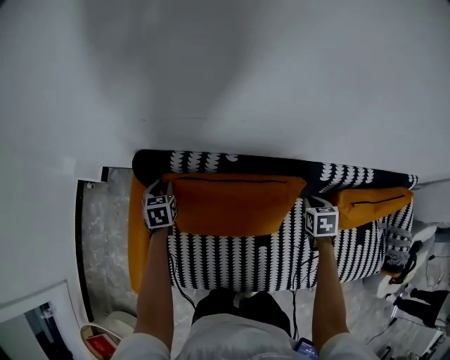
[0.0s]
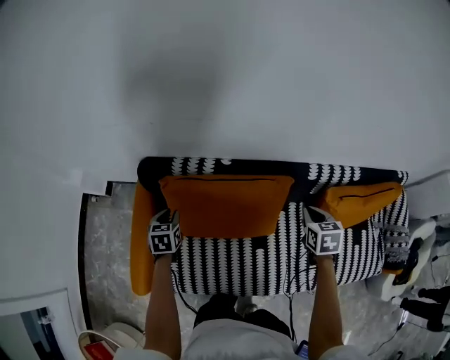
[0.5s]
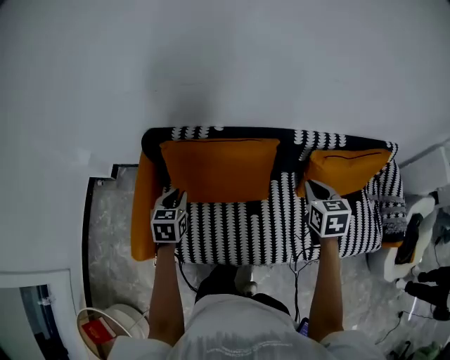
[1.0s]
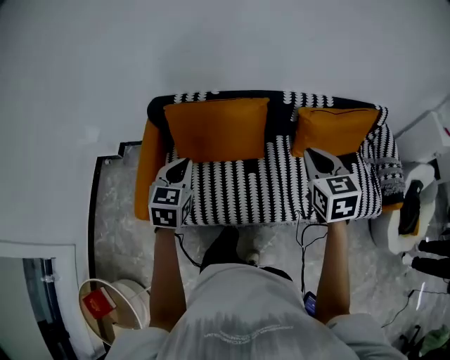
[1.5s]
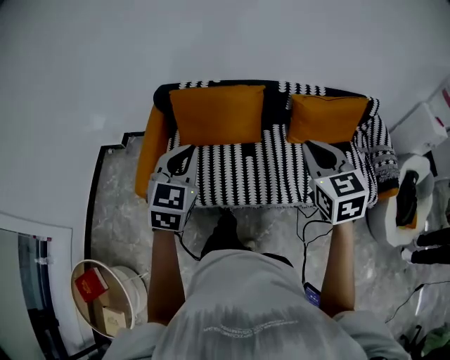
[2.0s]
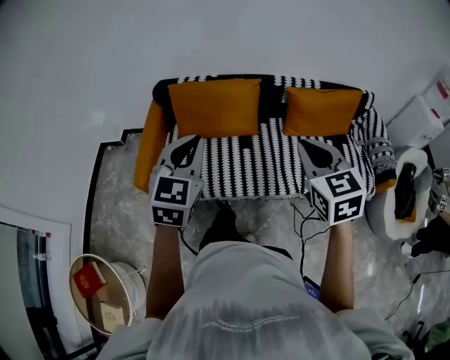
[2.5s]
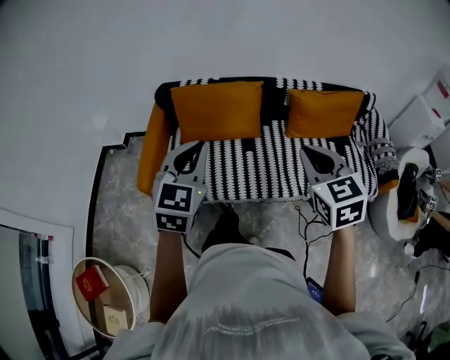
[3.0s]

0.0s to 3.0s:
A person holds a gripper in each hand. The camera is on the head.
0.0s to 1.5s: The right gripper is displaced backward and upward by roughly 50 cm, and tilts its fingers some 30 degrees upward, while the left gripper travels backward, upward and to the right by about 50 cm, turns by some 30 degrees, and closes.
1.5s to 3.0s: The right gripper goes approximately 20 cm backward; the left gripper travels backward and upward by roughly 20 cm.

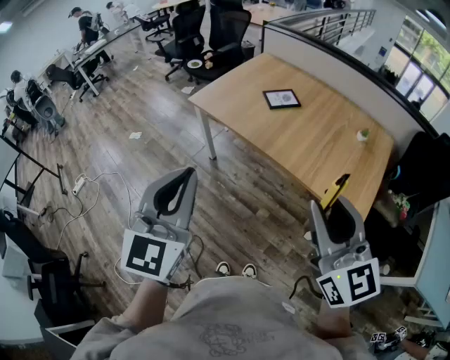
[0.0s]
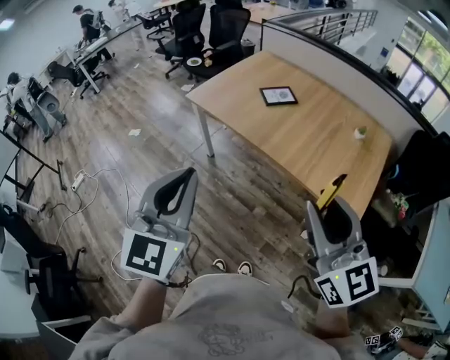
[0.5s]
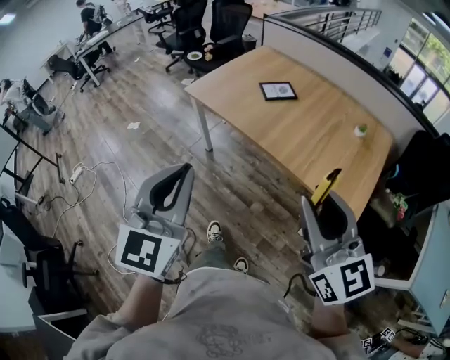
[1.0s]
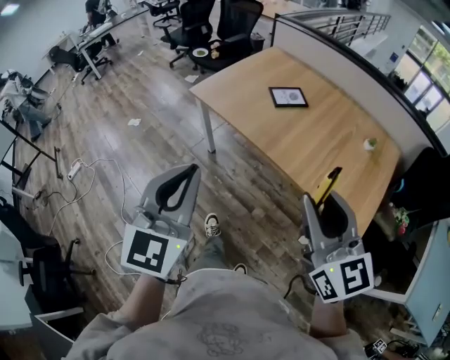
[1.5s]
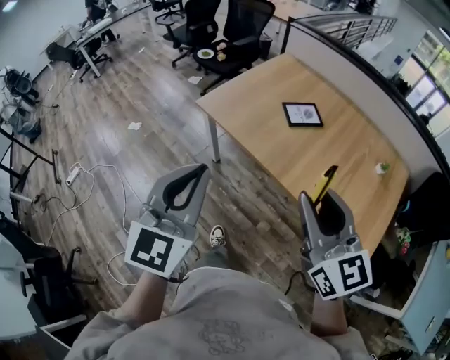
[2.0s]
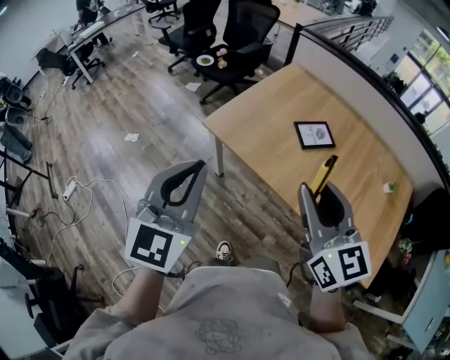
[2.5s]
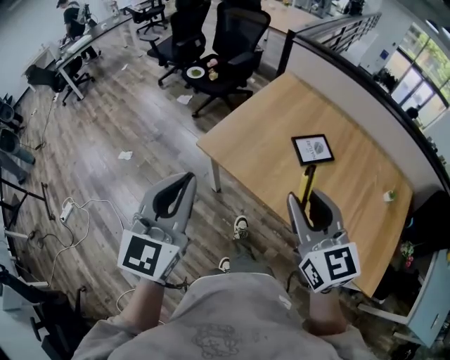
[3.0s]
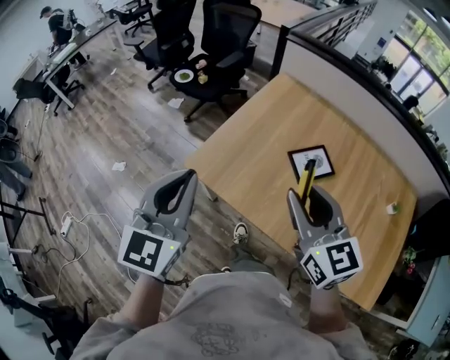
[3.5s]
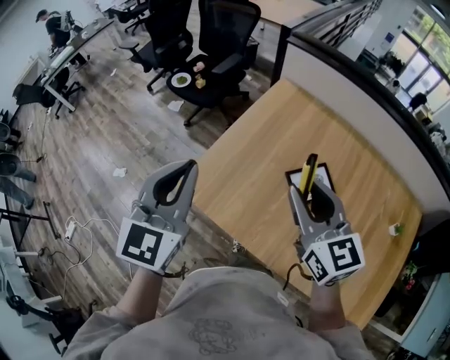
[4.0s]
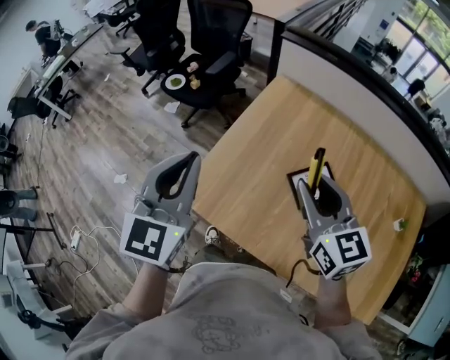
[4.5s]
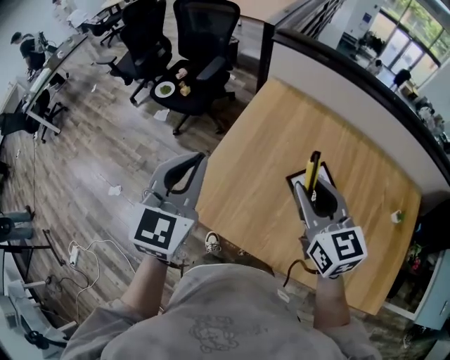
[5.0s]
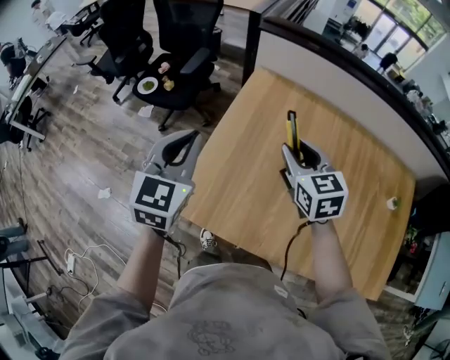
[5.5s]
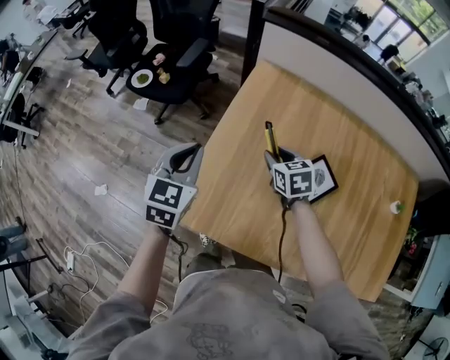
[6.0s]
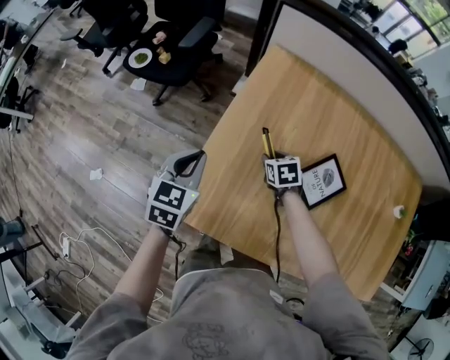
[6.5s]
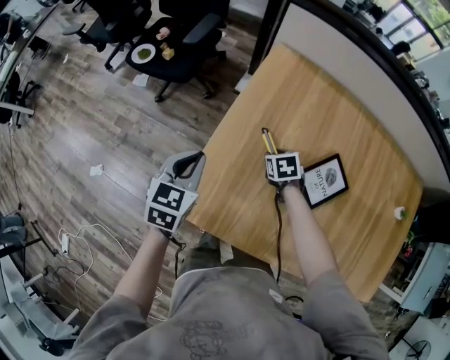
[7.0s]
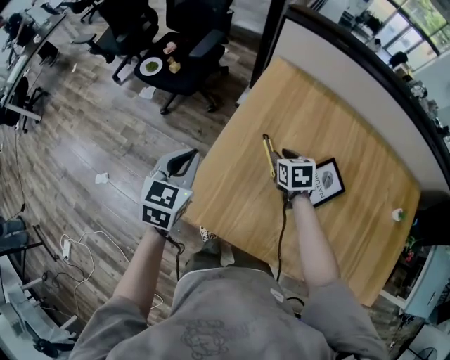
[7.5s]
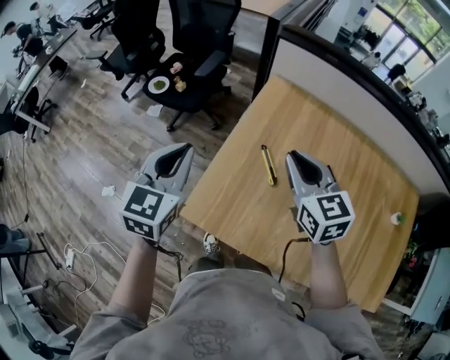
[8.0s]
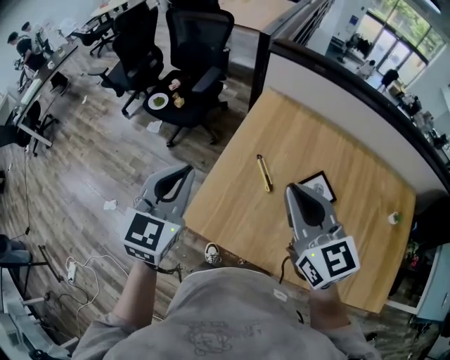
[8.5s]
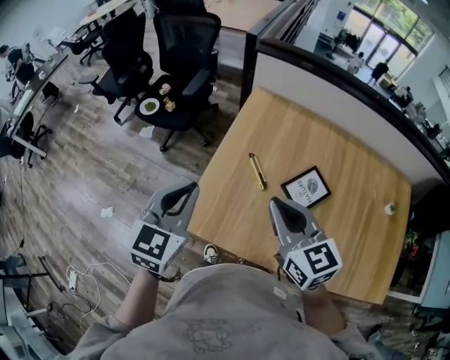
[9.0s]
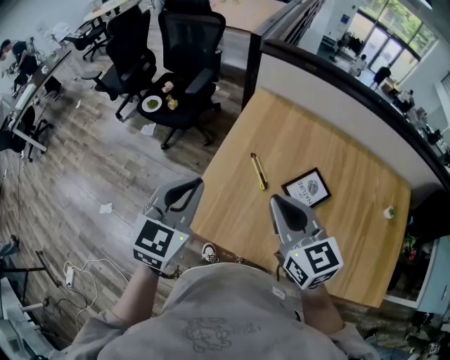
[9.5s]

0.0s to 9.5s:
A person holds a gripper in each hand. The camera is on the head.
0.0s to 2.0s: Both grippers travel together forward, some 20 cm.
2.0s to 4.0s: The pair of grippers is taken forward, approximately 50 cm.
4.0s to 5.5s: The right gripper goes some 20 cm forward and downward, and turns by approximately 20 degrees, while the left gripper shifts roughly 15 cm forward.
5.5s to 7.5s: The right gripper goes some 20 cm downward, and swivels about 30 degrees. Meanwhile the left gripper moves downward and to the left, about 15 cm.
7.5s to 9.5s: The left gripper travels upward and backward by some 20 cm; the right gripper is displaced upward and backward by about 35 cm, angles its fingers upward, by approximately 40 degrees, and closes.

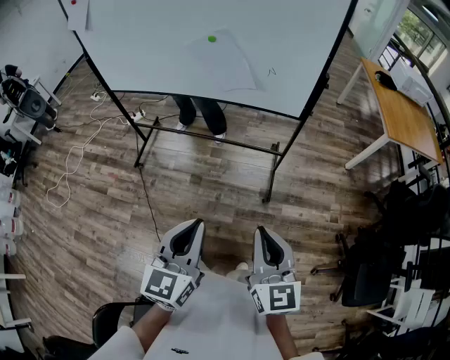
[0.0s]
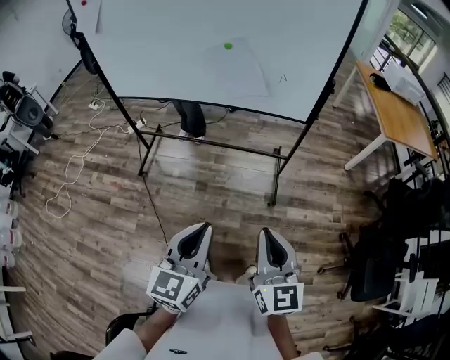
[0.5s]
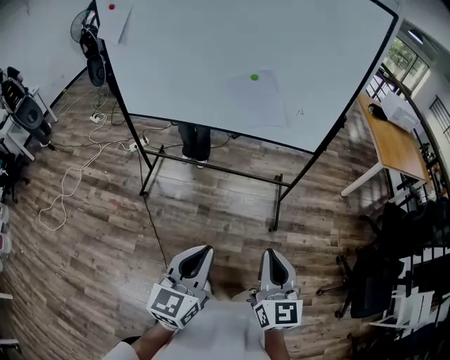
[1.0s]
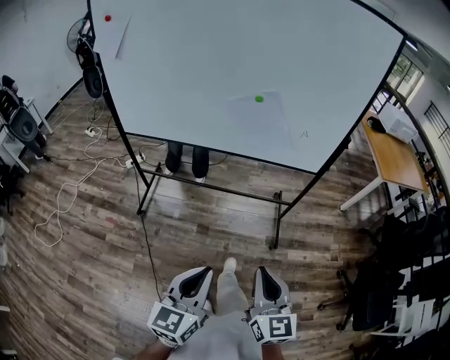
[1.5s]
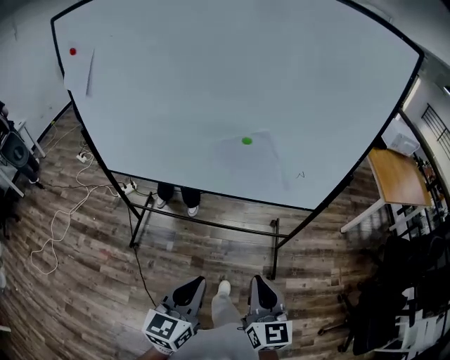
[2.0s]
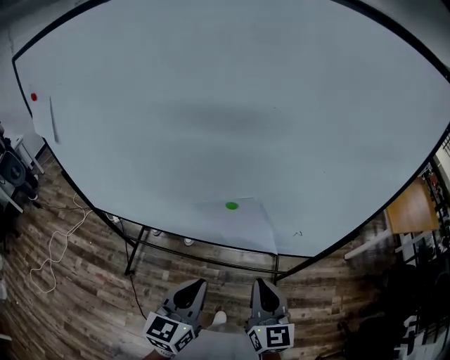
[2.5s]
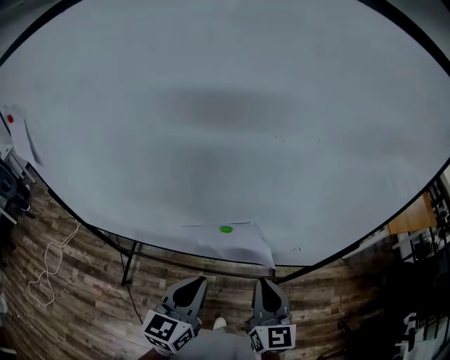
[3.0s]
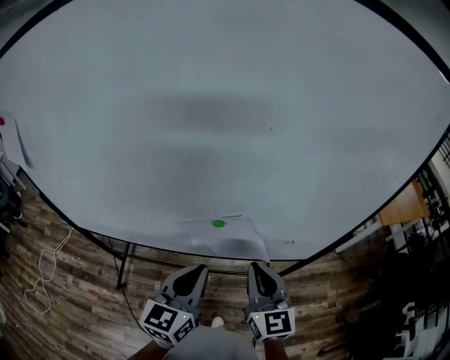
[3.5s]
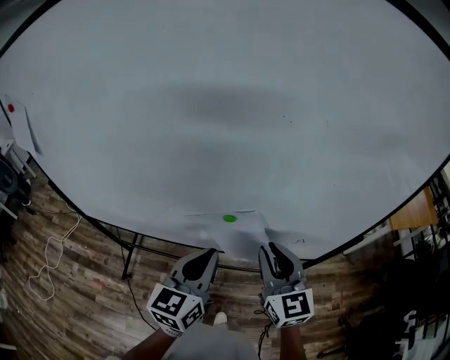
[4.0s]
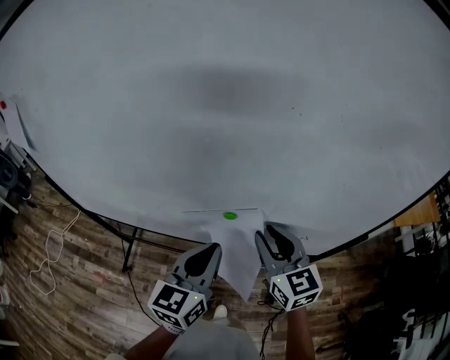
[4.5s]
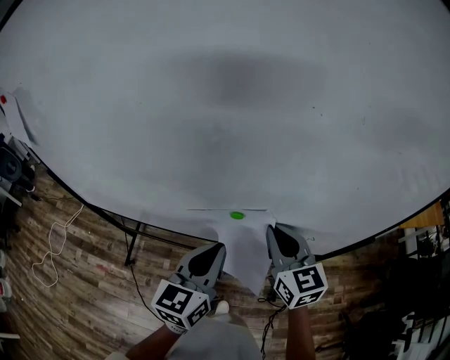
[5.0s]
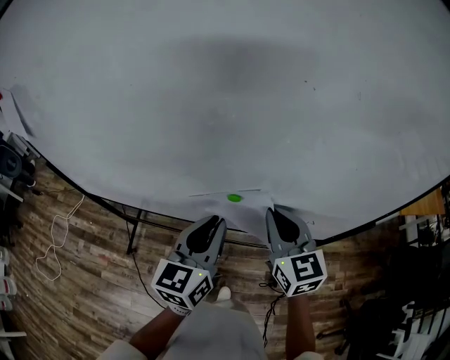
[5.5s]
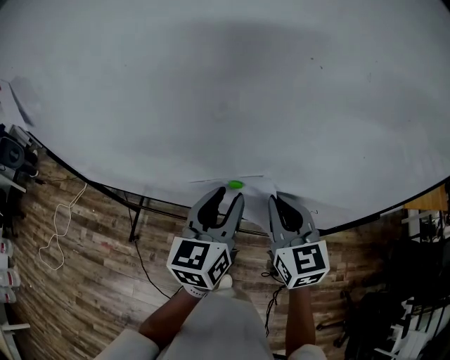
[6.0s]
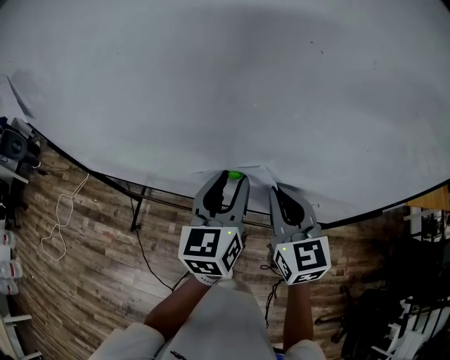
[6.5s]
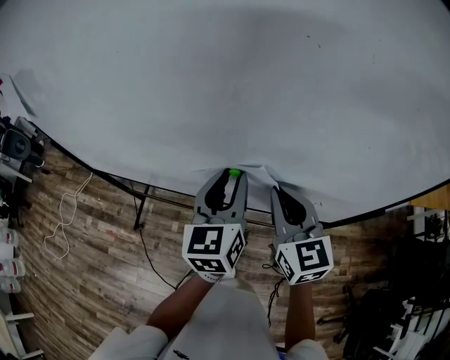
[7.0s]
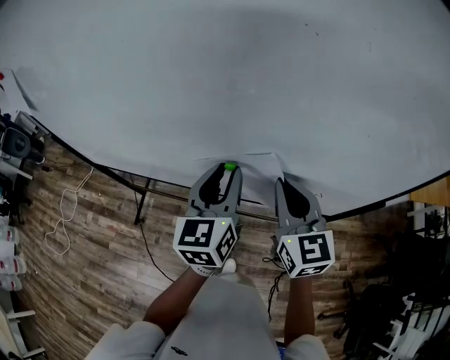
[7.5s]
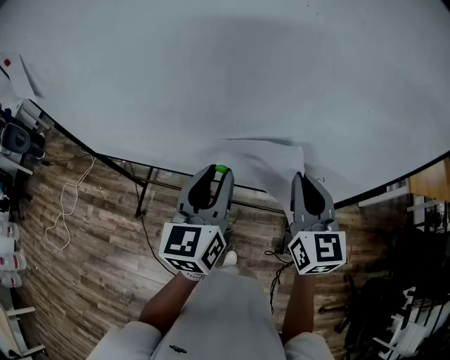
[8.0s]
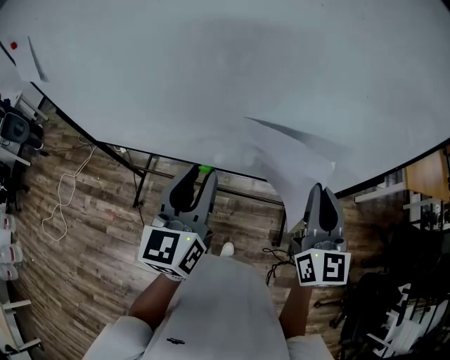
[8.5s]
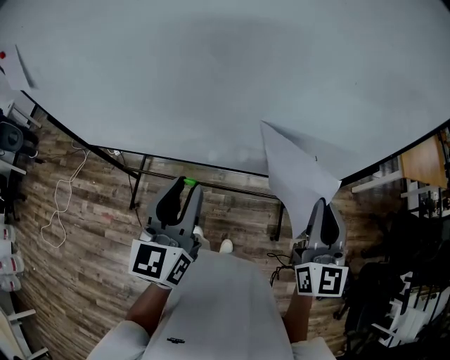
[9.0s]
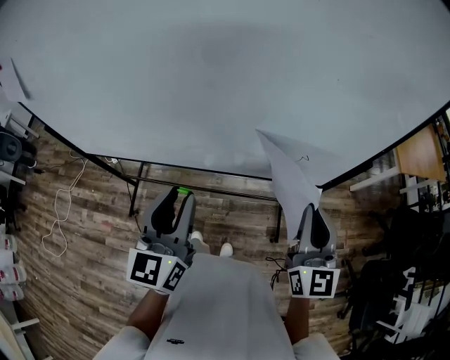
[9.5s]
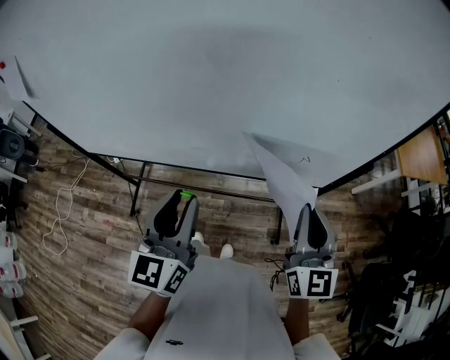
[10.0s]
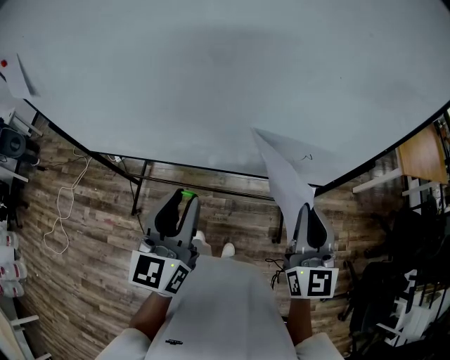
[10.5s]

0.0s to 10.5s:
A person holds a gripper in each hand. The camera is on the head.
0.0s to 2.0s: The two grippers go about 30 cm forward and to the left.
2.0s to 4.0s: The grippers both shift forward by approximately 35 cm.
4.0s to 6.5s: The left gripper heads forward, covering some 5 cm, and opens up.
6.5s to 8.5s: The right gripper travels backward and to the right by roughly 15 cm, and turns by about 20 degrees. The left gripper moves backward and to the left, some 15 cm.
8.5s to 10.5s: Both grippers travel together backward, approximately 5 cm.

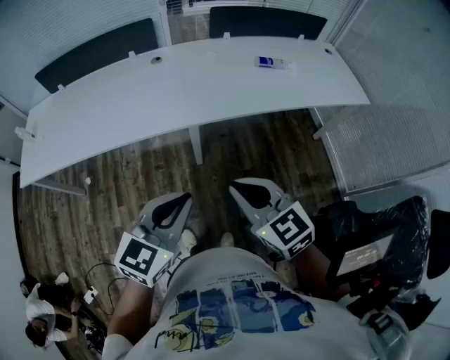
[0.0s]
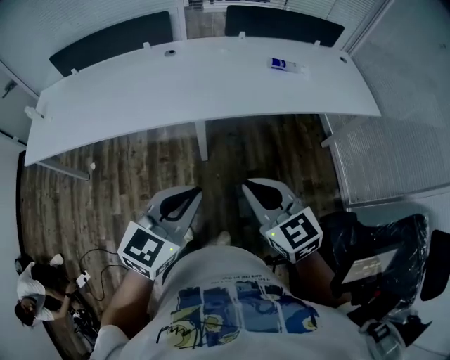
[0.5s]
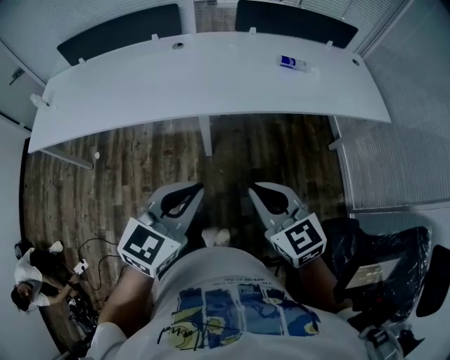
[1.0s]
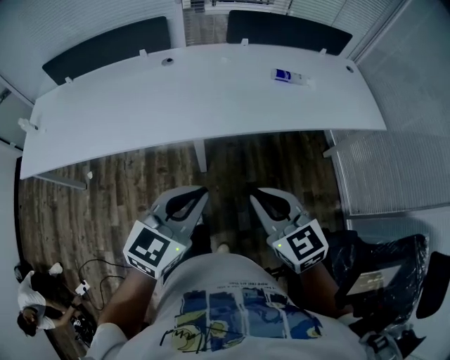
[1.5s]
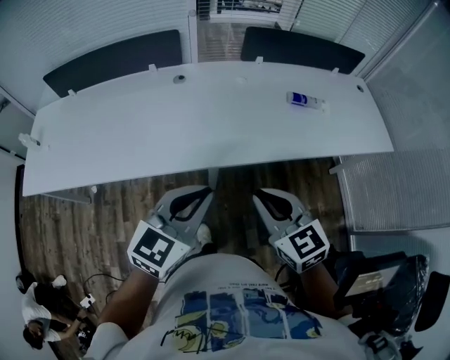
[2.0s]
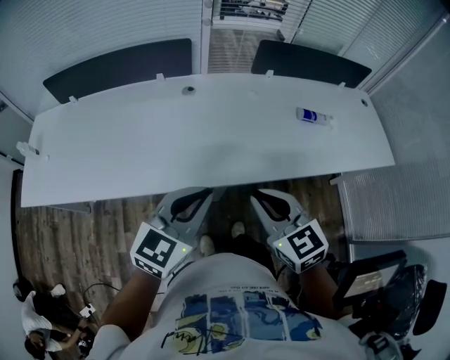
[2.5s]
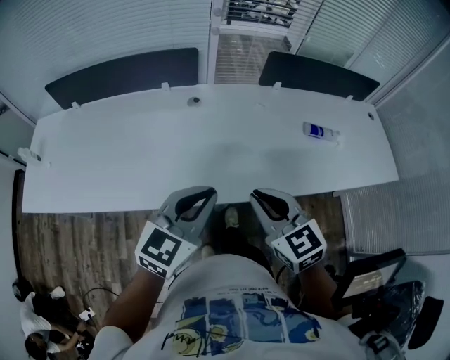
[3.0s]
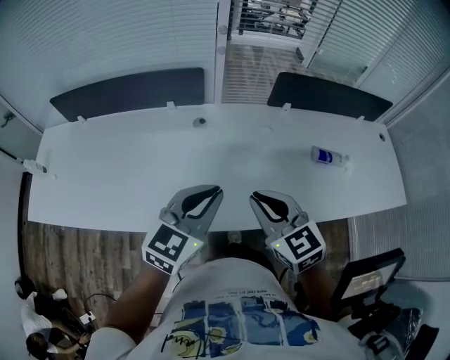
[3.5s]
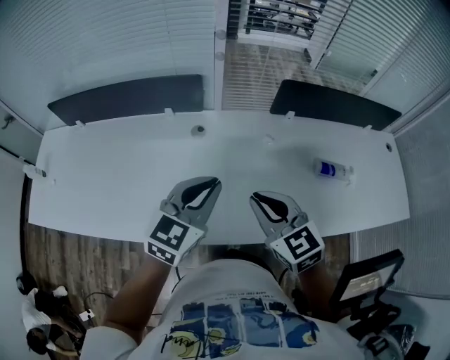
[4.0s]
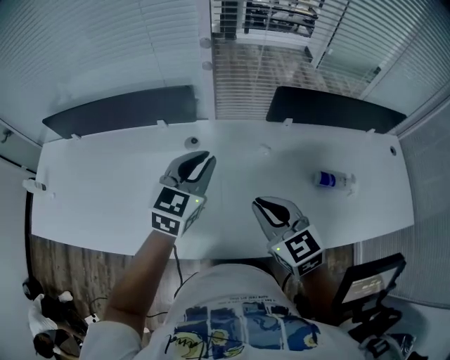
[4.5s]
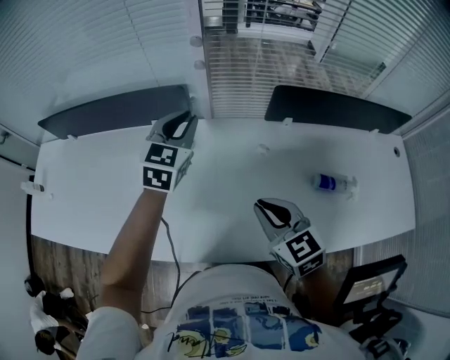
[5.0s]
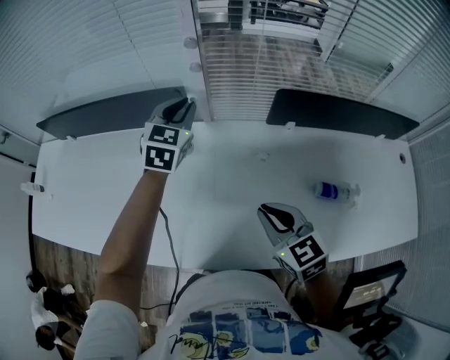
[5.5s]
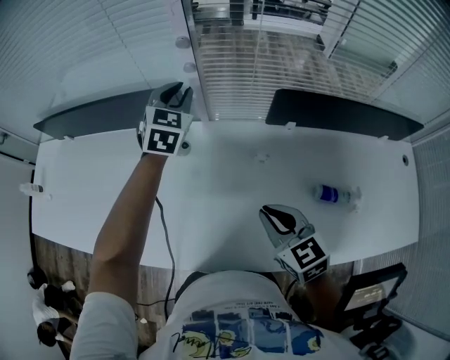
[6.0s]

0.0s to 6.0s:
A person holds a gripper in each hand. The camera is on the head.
0.0s to 2.0s: Both grippers travel together forward, roughly 20 cm.
2.0s to 4.0s: Both grippers travel together forward, approximately 30 cm.
4.0s to 6.0s: The right gripper goes about 15 cm to the right, forward and downward. Meanwhile the left gripper heads forward, covering roughly 35 cm, and turns by roughly 30 degrees.
